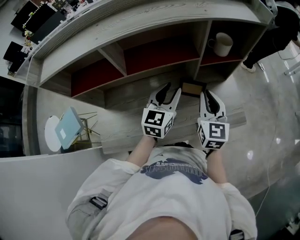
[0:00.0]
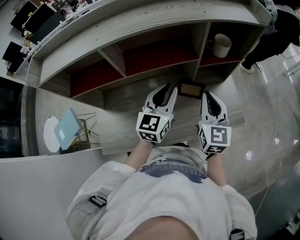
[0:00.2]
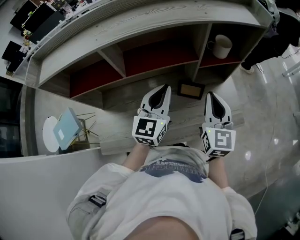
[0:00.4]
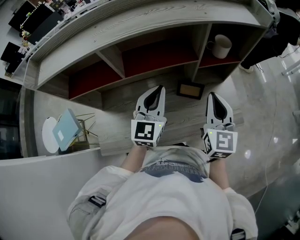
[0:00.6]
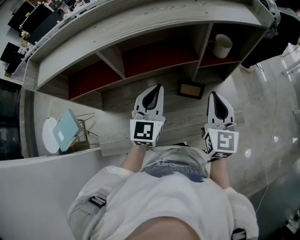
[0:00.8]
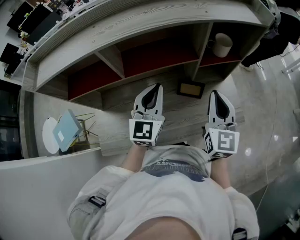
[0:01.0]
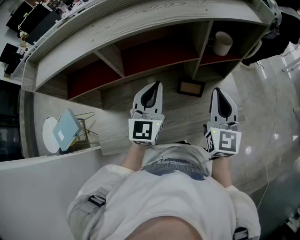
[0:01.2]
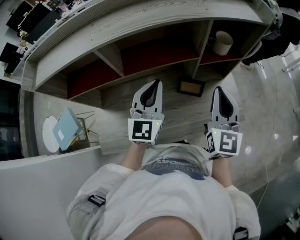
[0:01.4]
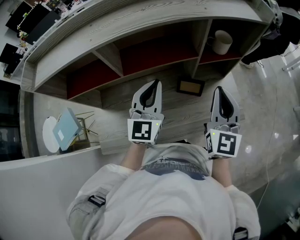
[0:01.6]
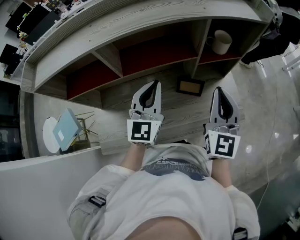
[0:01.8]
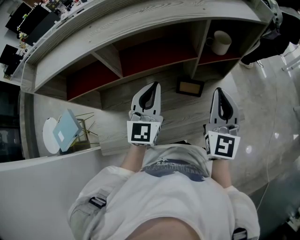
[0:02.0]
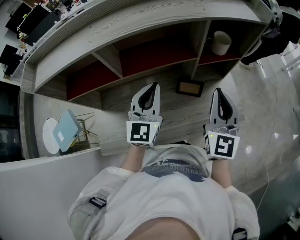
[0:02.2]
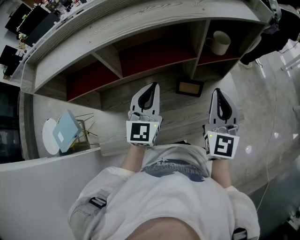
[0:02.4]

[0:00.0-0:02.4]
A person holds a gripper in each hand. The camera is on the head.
0.0 to 1.2 s: Both grippers move upward, about 5 cm. The left gripper closes its fingers.
1.2 to 2.4 s: The grippers stay close to where they were, moving slightly.

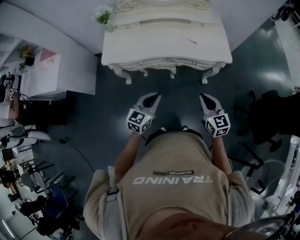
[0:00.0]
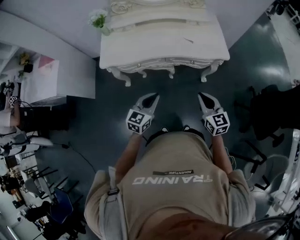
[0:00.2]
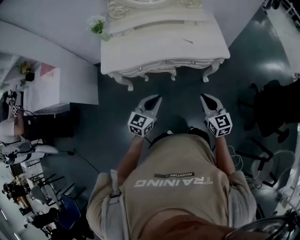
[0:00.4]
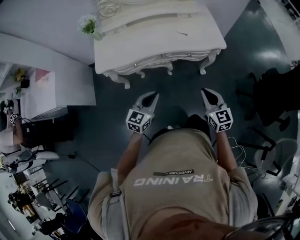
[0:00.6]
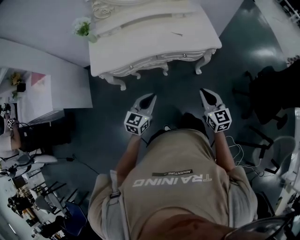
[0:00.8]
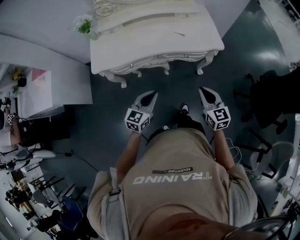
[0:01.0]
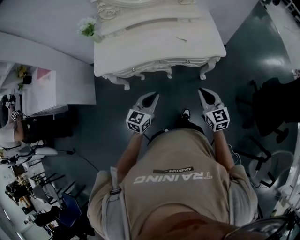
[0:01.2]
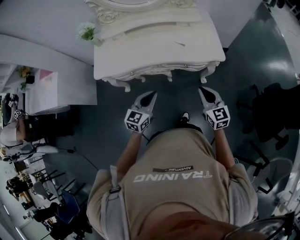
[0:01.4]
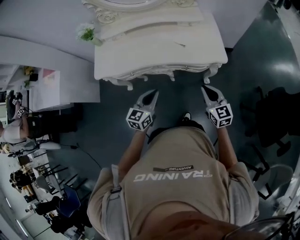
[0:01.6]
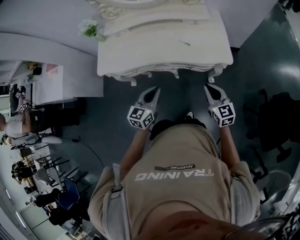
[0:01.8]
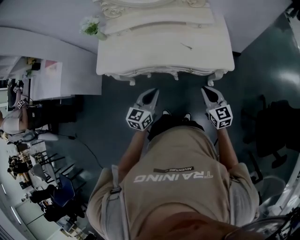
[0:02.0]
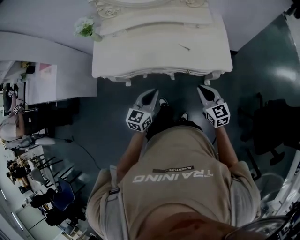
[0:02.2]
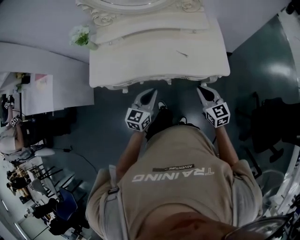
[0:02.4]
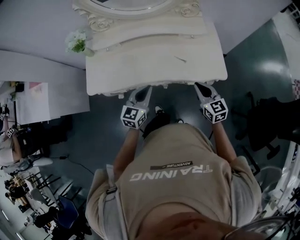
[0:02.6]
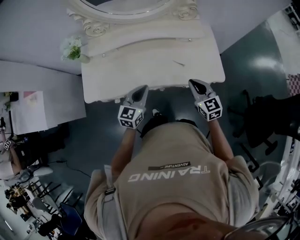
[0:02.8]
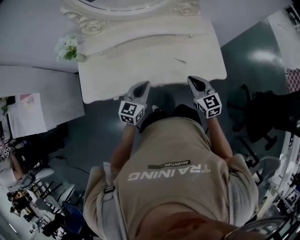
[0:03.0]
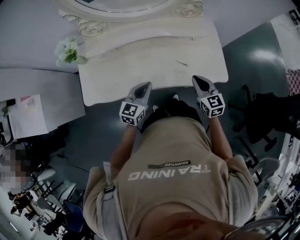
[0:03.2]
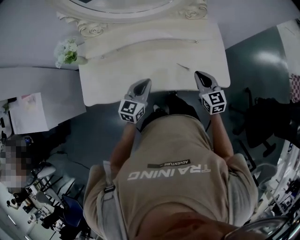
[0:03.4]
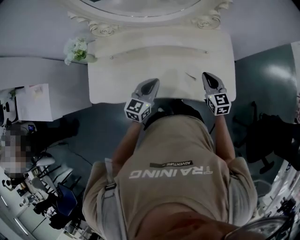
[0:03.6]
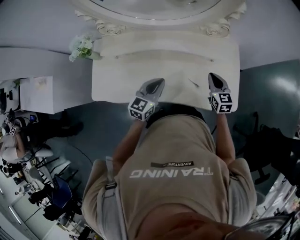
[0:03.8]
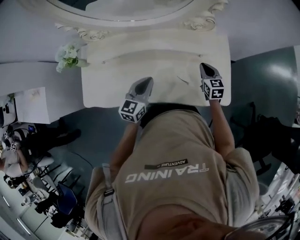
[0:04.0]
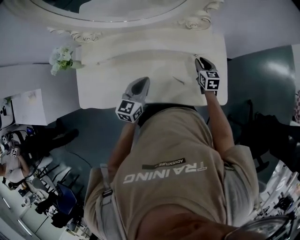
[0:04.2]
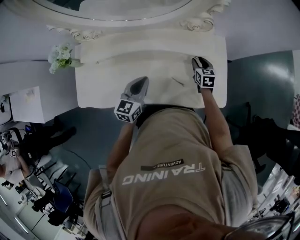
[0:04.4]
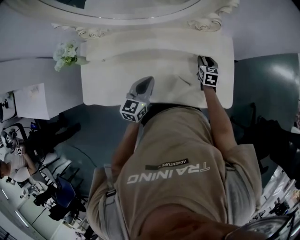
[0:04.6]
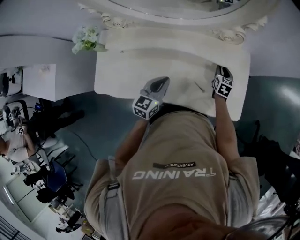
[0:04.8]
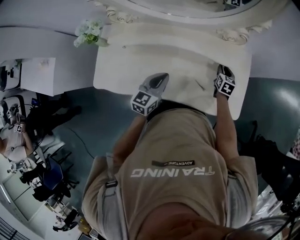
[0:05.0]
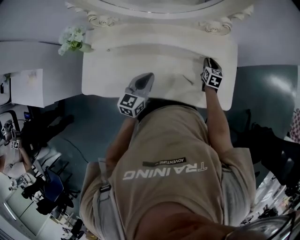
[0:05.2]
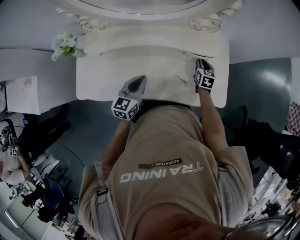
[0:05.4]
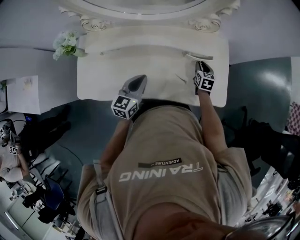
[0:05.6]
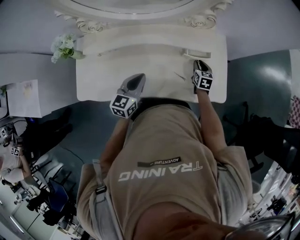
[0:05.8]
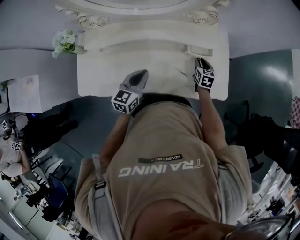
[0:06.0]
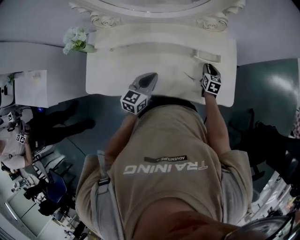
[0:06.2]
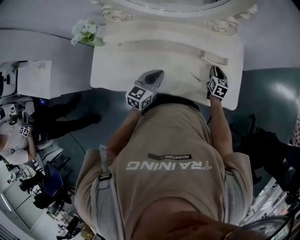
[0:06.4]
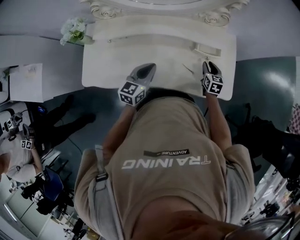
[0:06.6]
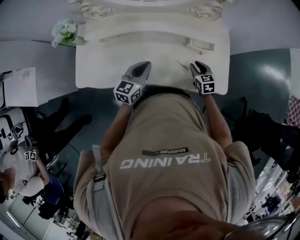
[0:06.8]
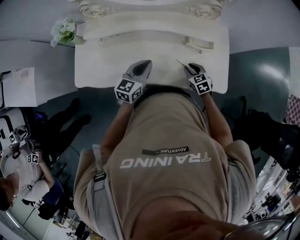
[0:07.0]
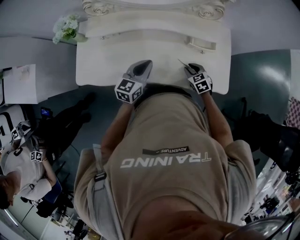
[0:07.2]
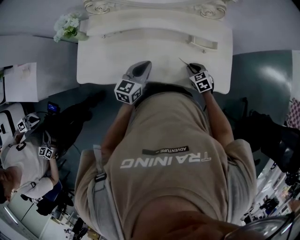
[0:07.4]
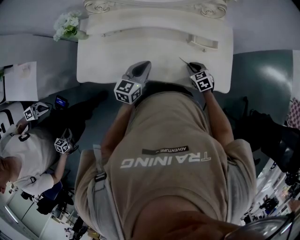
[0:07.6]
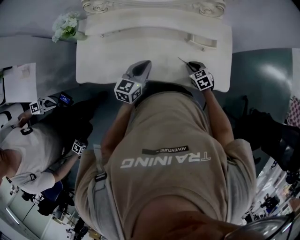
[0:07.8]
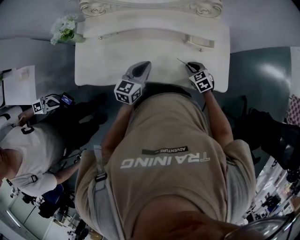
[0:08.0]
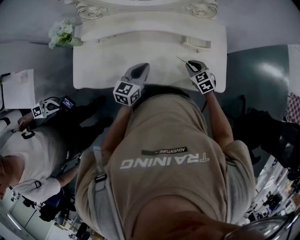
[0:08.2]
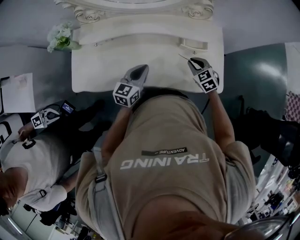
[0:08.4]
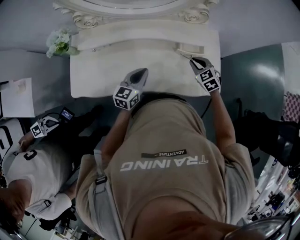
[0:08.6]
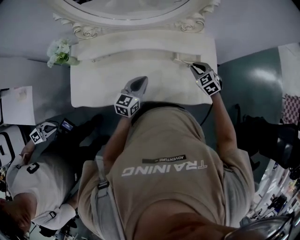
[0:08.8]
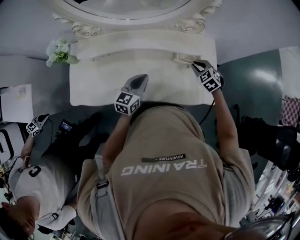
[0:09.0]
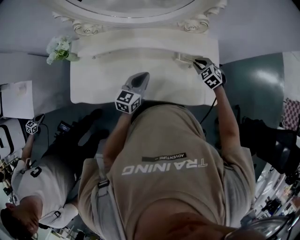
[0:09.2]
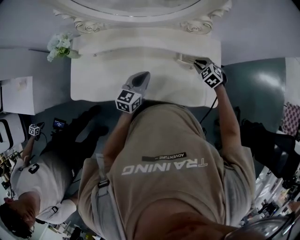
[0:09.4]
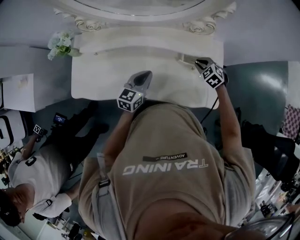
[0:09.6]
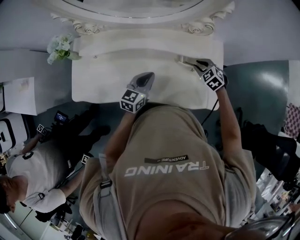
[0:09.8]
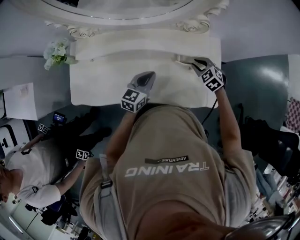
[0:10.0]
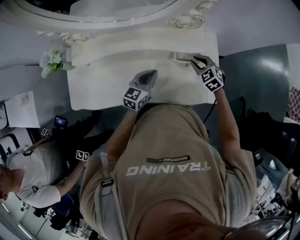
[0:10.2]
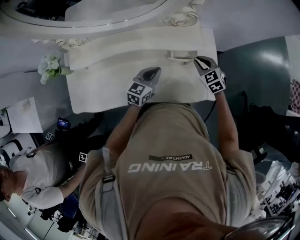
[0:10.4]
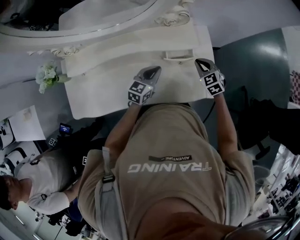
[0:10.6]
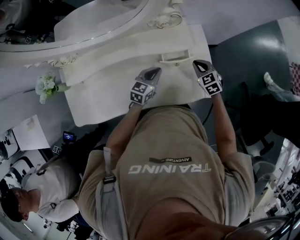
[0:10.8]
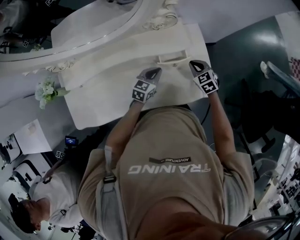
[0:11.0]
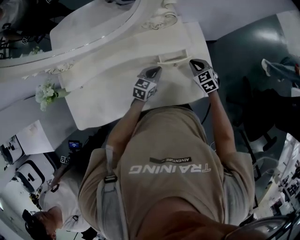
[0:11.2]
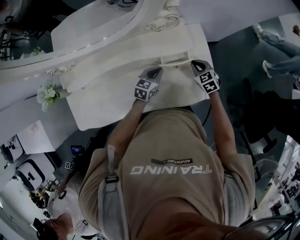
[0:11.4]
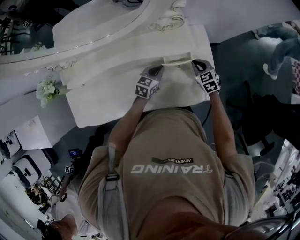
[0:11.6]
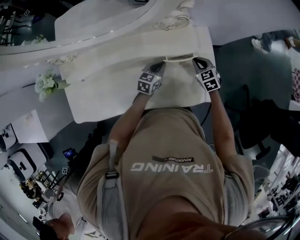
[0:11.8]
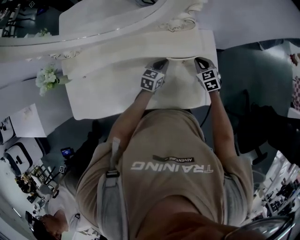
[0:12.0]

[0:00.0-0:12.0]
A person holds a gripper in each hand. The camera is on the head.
0.0 to 1.6 s: The two grippers go approximately 15 cm forward and to the right.
1.6 to 3.0 s: The right gripper is displaced forward and to the left by roughly 25 cm, while the left gripper is displaced forward by about 25 cm.
3.0 to 4.4 s: The left gripper shifts roughly 15 cm forward. The right gripper moves forward and downward, some 35 cm, swivels about 20 degrees, and opens.
4.4 to 6.0 s: The right gripper heads backward, covering some 5 cm.
6.0 to 7.6 s: The right gripper is displaced backward and to the left by roughly 15 cm, and turns by about 40 degrees.
7.6 to 9.0 s: The right gripper shifts about 15 cm upward, forward and to the right. The left gripper goes some 5 cm to the right.
9.0 to 10.4 s: The left gripper moves to the right and forward, roughly 10 cm.
10.4 to 12.0 s: The left gripper goes roughly 15 cm forward and downward. Meanwhile the right gripper shifts approximately 10 cm downward and forward.

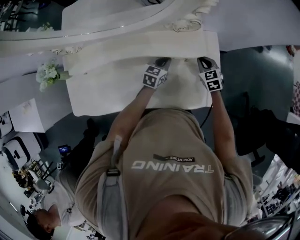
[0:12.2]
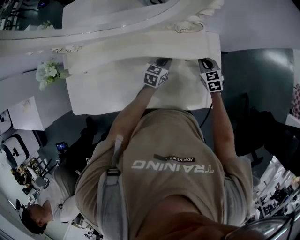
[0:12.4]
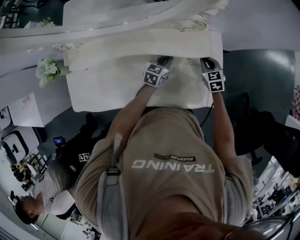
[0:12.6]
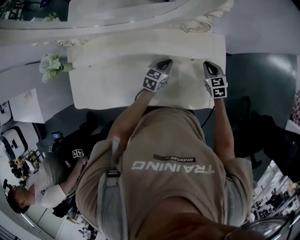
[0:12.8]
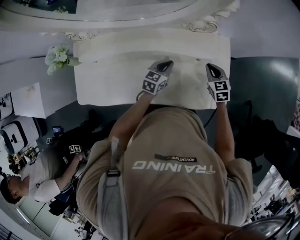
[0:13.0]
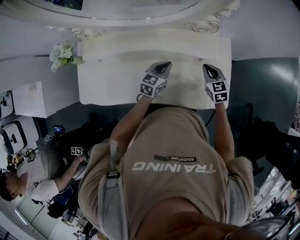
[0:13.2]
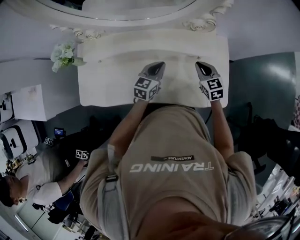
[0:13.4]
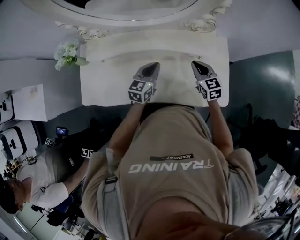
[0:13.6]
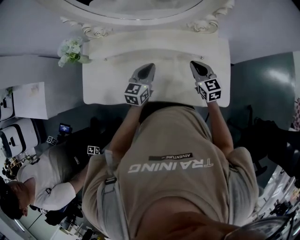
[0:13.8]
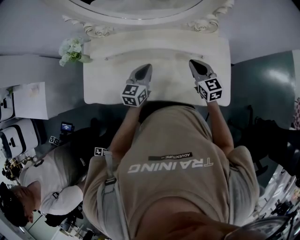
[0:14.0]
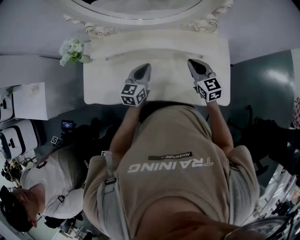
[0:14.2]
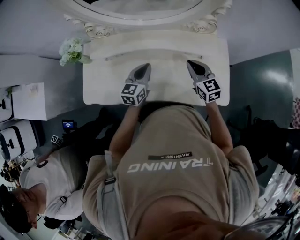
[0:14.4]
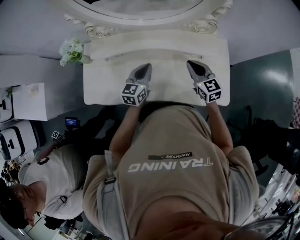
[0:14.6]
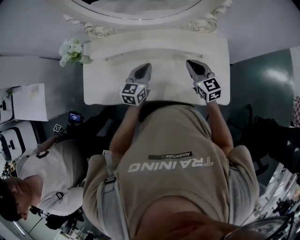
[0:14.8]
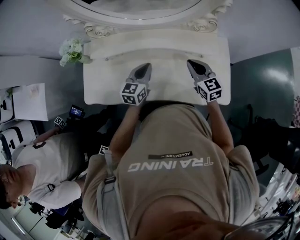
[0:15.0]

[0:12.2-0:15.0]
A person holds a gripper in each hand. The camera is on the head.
12.2 to 13.6 s: The grippers both shift to the left, upward and backward by roughly 20 cm.
13.6 to 15.0 s: The right gripper goes about 5 cm upward and to the left, while the left gripper shifts approximately 5 cm to the left.

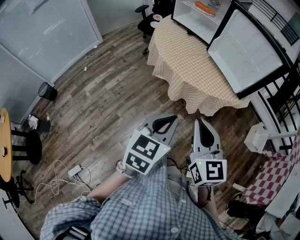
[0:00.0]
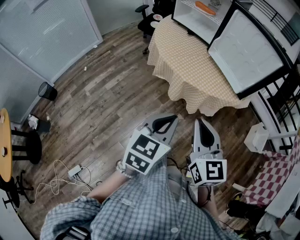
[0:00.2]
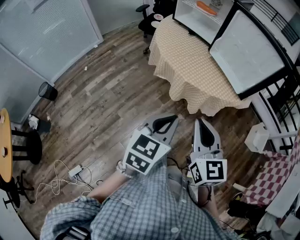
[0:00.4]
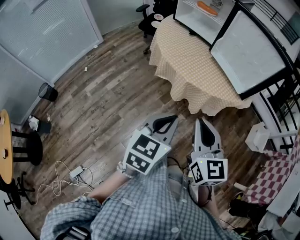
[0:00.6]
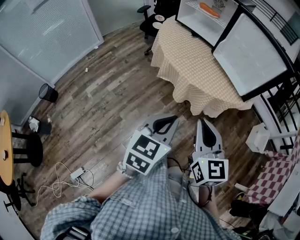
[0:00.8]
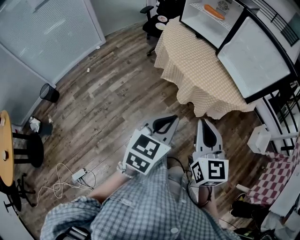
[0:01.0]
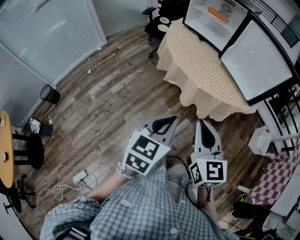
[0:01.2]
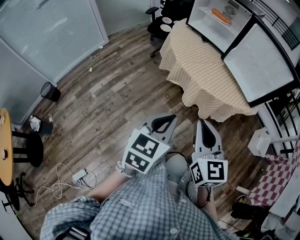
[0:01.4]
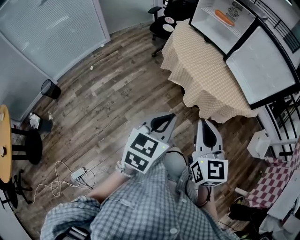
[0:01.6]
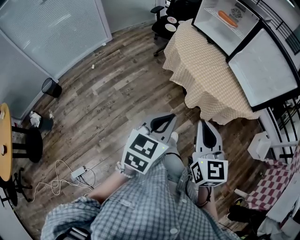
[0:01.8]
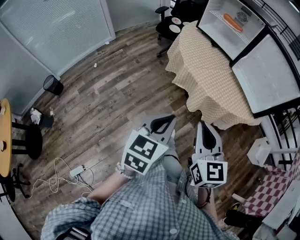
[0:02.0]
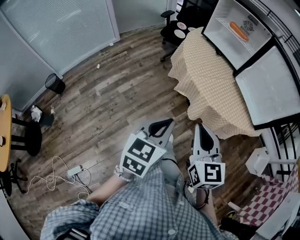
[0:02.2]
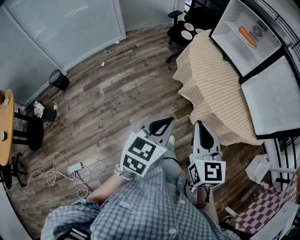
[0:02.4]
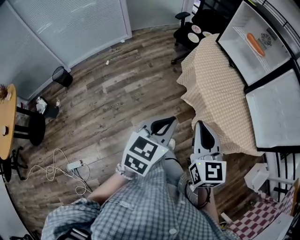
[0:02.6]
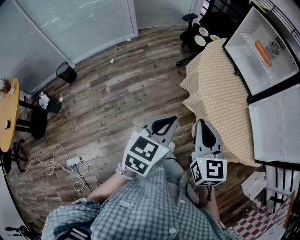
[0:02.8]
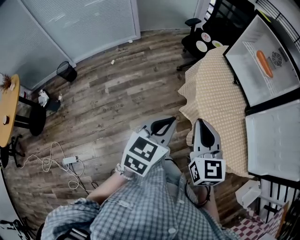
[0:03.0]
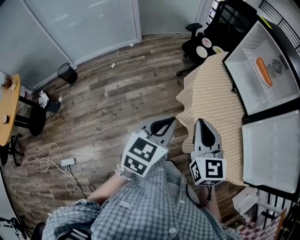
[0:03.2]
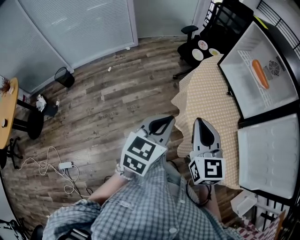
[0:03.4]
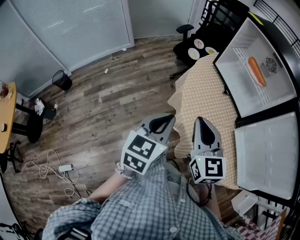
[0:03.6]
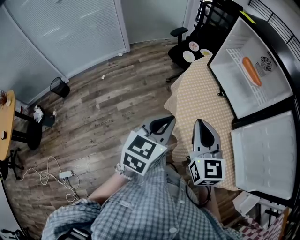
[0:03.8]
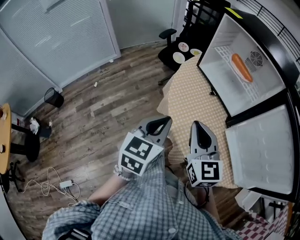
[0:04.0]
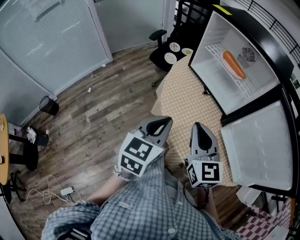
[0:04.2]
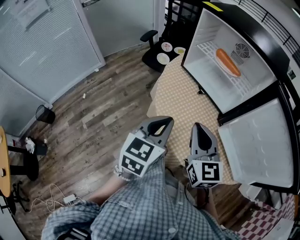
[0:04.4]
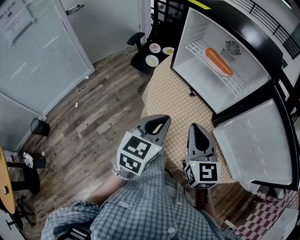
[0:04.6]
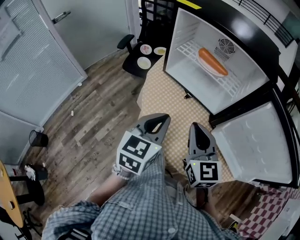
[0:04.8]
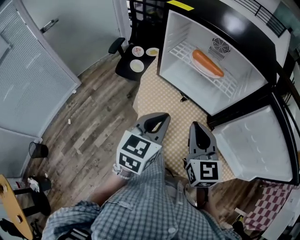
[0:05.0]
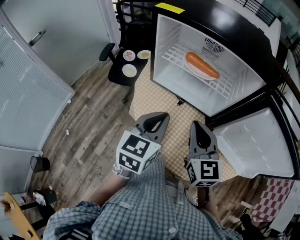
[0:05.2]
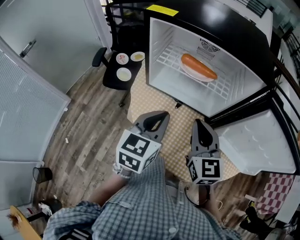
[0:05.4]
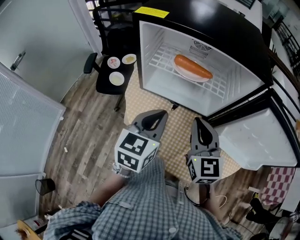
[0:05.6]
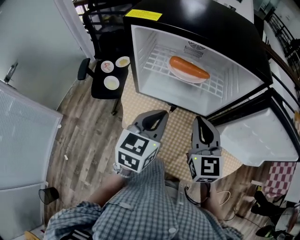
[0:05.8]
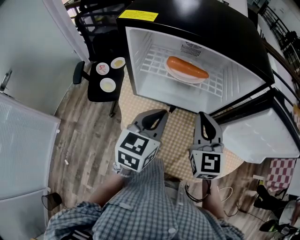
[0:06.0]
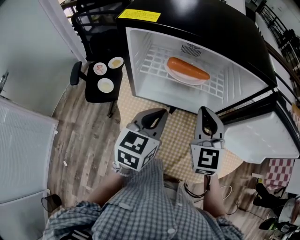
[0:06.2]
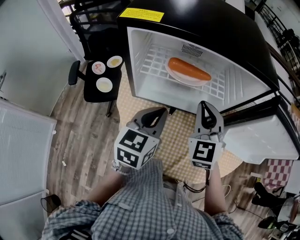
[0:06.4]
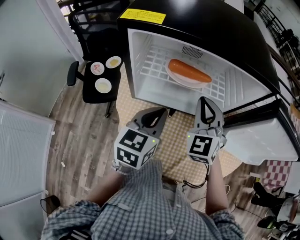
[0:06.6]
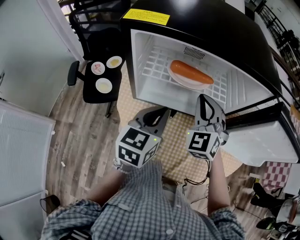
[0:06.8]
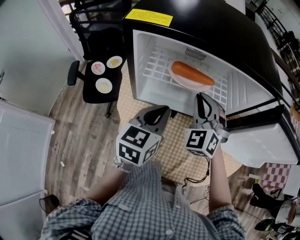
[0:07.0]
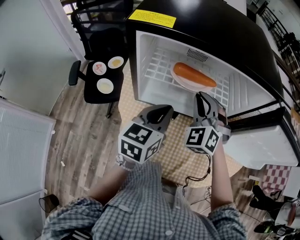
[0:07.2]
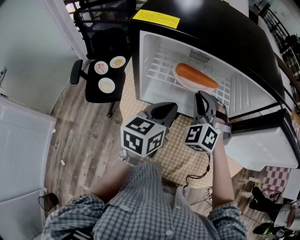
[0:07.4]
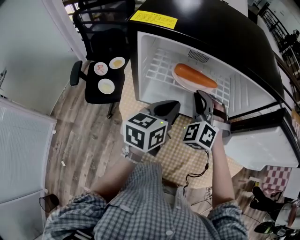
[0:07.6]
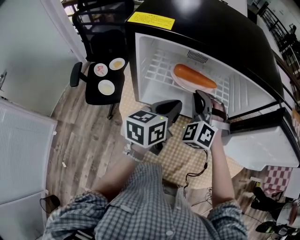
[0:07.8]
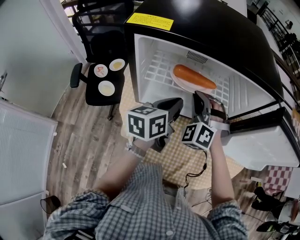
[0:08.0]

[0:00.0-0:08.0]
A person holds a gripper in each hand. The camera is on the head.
0.0 to 1.6 s: The grippers both shift to the left by some 15 cm.
1.6 to 3.2 s: Both grippers travel together forward, about 30 cm. The left gripper rotates about 20 degrees. Meanwhile the right gripper rotates roughly 20 degrees.
3.2 to 4.8 s: The left gripper changes place by some 25 cm, and changes its angle by about 20 degrees; the right gripper shifts by some 20 cm, and swivels roughly 30 degrees.
4.8 to 6.4 s: The left gripper ends up some 20 cm from where it was, and turns by about 30 degrees. Meanwhile the right gripper moves approximately 20 cm, and turns by some 40 degrees.
6.4 to 8.0 s: The left gripper moves forward, approximately 10 cm, and swivels about 30 degrees; the right gripper shifts about 10 cm forward, to the left and downward, and rotates around the line of its fingers by about 40 degrees, counterclockwise from behind.
